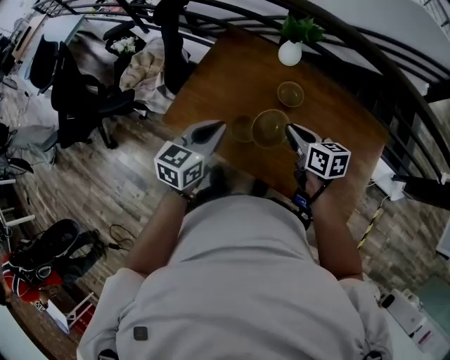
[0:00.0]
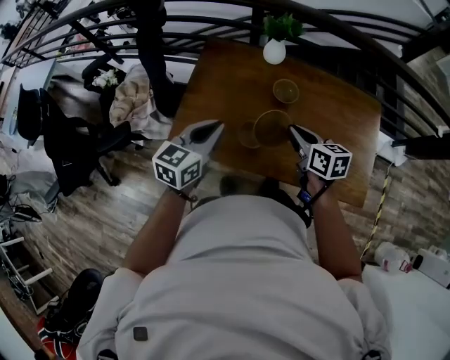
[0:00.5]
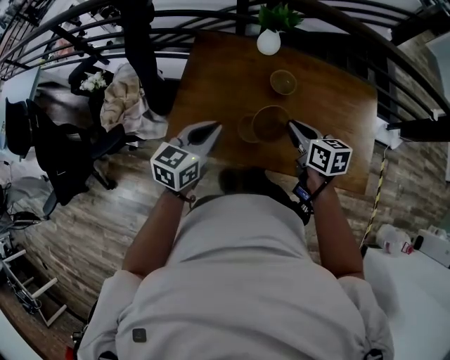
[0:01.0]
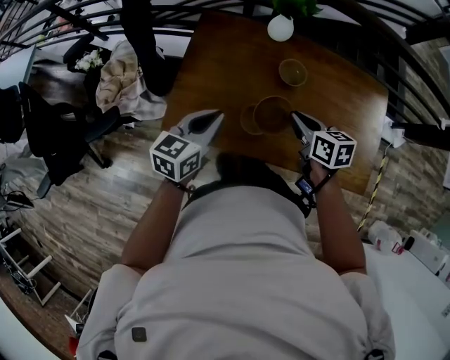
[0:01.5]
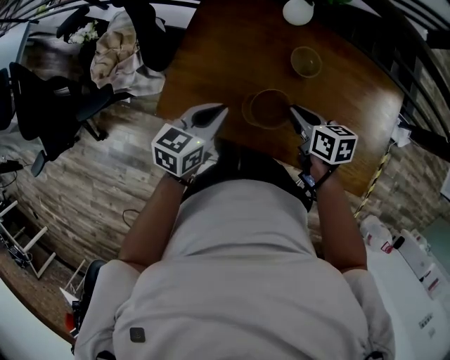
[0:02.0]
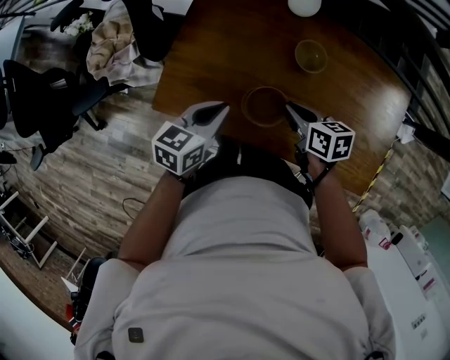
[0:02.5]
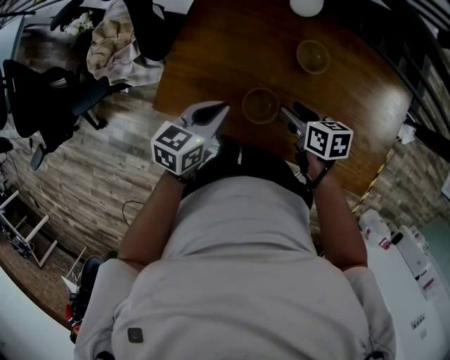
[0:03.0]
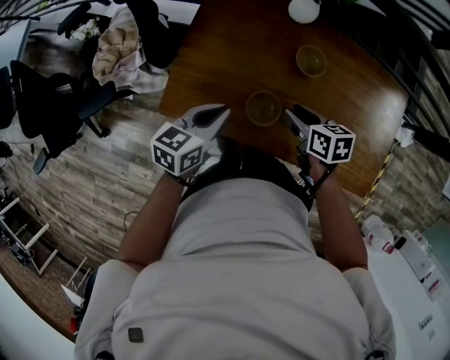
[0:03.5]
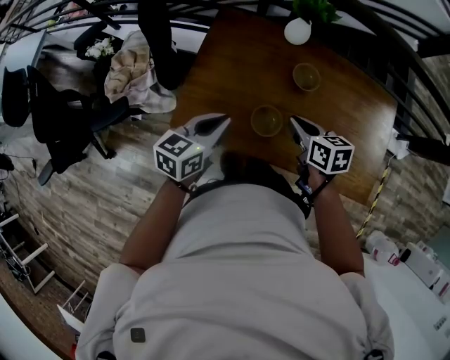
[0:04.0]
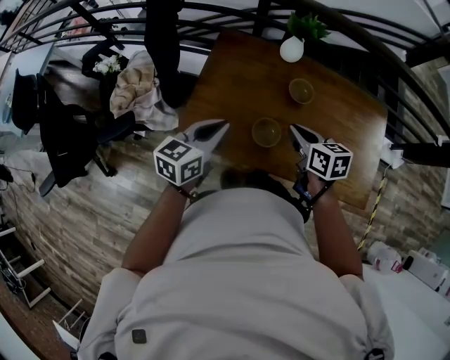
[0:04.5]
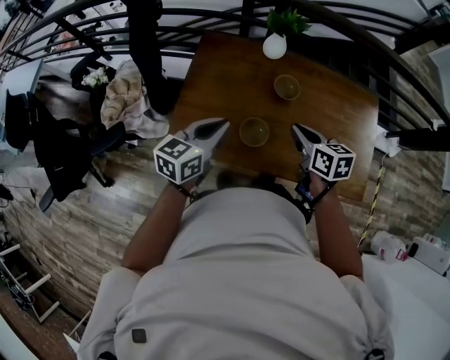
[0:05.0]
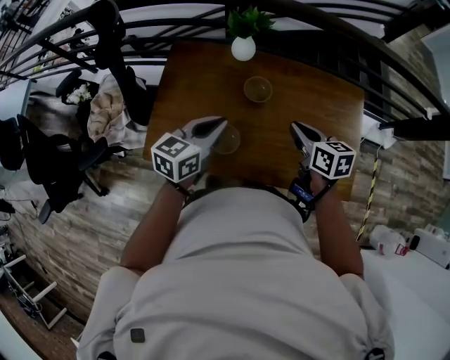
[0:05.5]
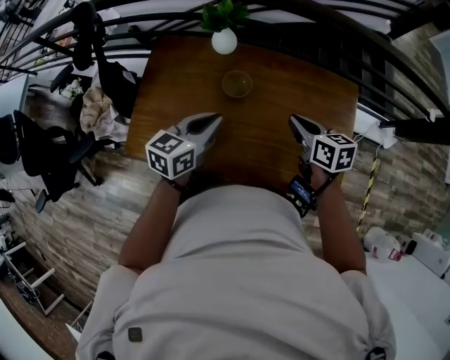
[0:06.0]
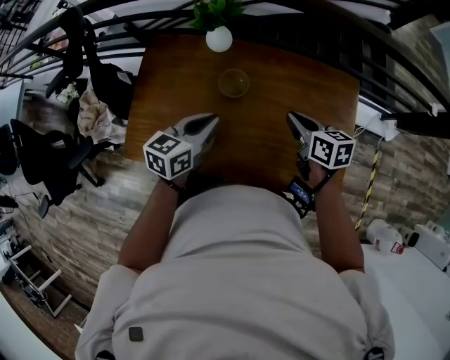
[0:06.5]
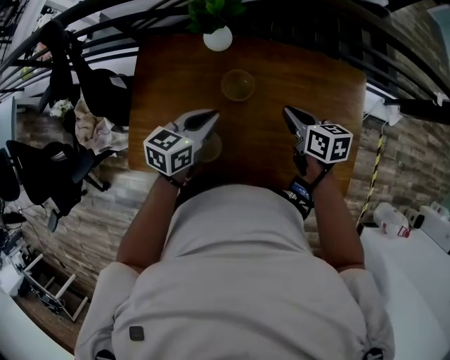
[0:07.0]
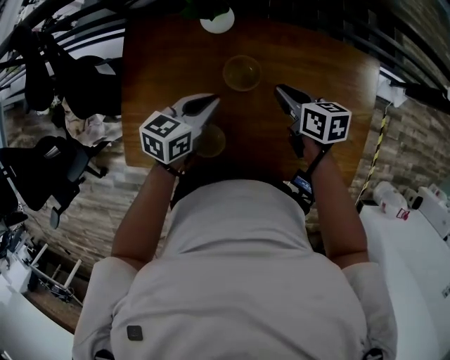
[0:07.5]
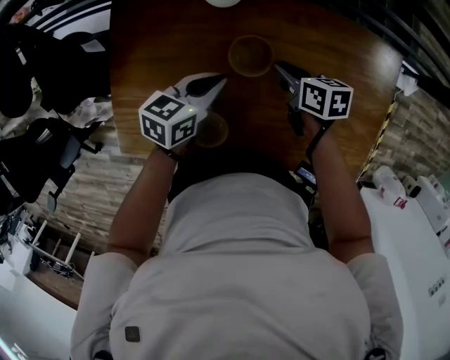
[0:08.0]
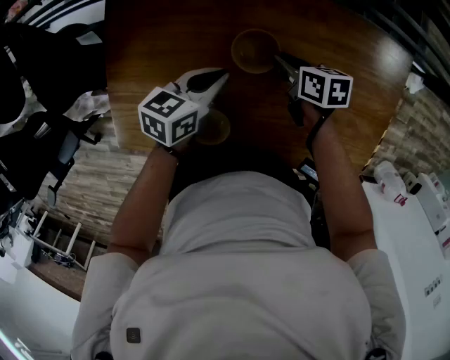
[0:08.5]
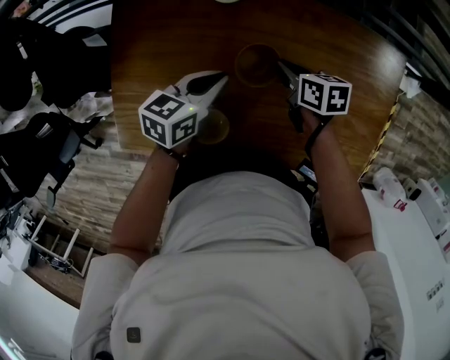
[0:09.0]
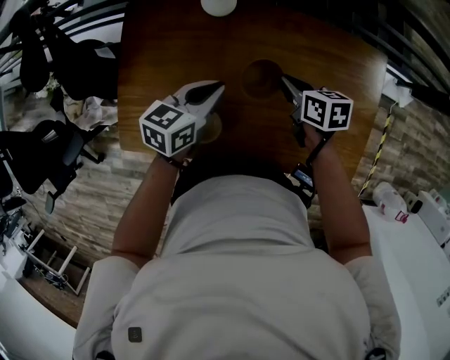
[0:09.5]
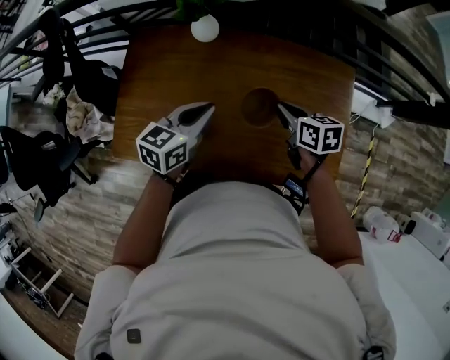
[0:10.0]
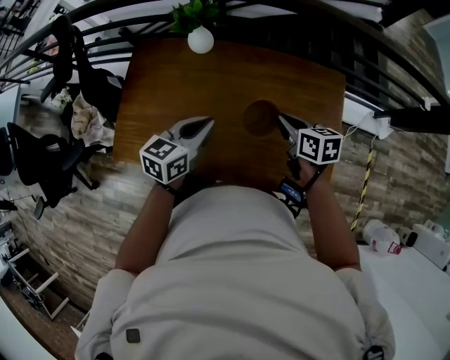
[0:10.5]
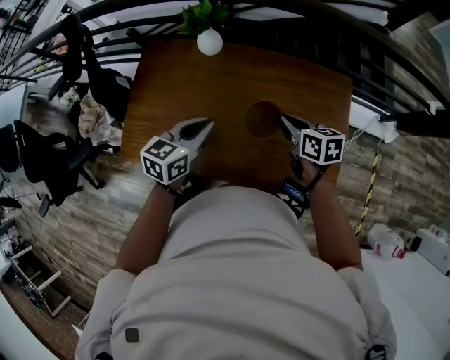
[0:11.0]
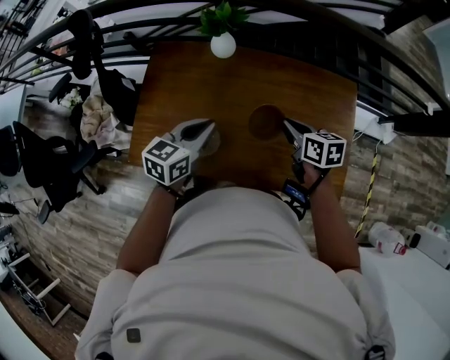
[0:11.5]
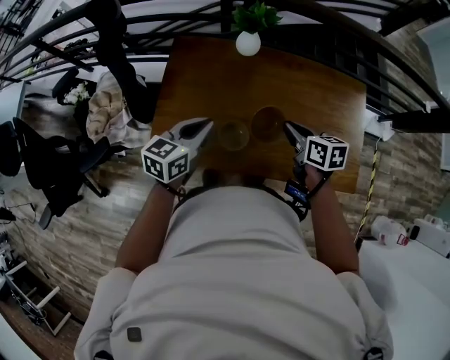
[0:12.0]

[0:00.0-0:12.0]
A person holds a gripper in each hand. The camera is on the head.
0:00.0 to 0:02.0: The right gripper is displaced downward and to the left by roughly 10 cm. Meanwhile the left gripper is displaced downward, forward and to the left by roughly 15 cm.
0:02.0 to 0:04.0: Both grippers move upward, about 5 cm. The right gripper opens and closes again.
0:04.0 to 0:06.0: Both grippers travel together to the right, about 30 cm.
0:06.0 to 0:08.0: The left gripper shifts approximately 25 cm downward and forward, and rotates approximately 20 degrees. Meanwhile the right gripper heads downward, forward and to the left, covering some 30 cm, and turns by approximately 20 degrees.
0:08.0 to 0:10.0: The left gripper moves upward and backward, some 20 cm, while the right gripper is displaced upward, backward and to the right by some 25 cm.
0:10.0 to 0:12.0: The two grippers go approximately 20 cm to the left and backward.

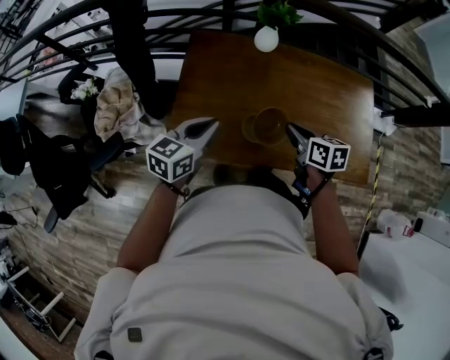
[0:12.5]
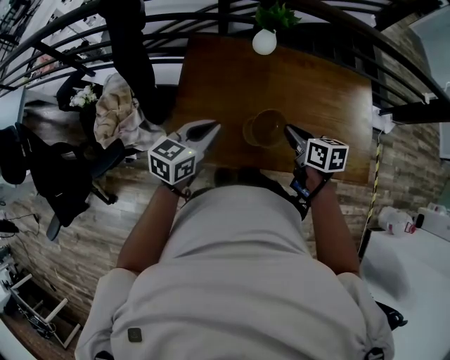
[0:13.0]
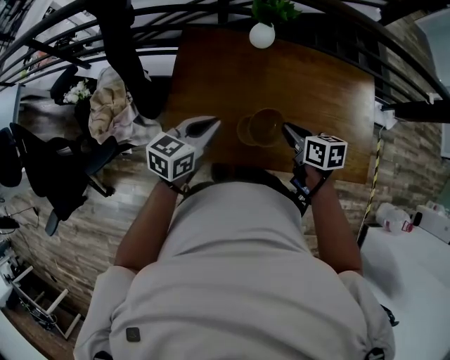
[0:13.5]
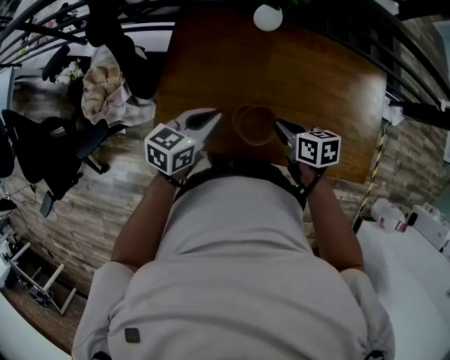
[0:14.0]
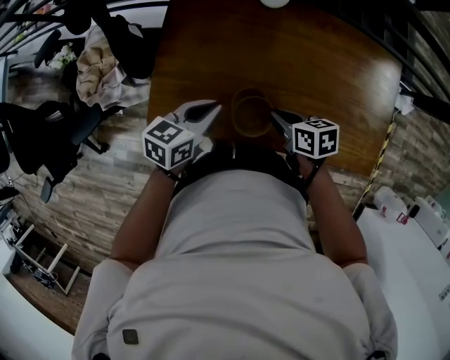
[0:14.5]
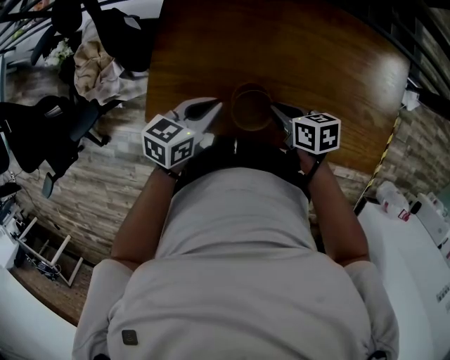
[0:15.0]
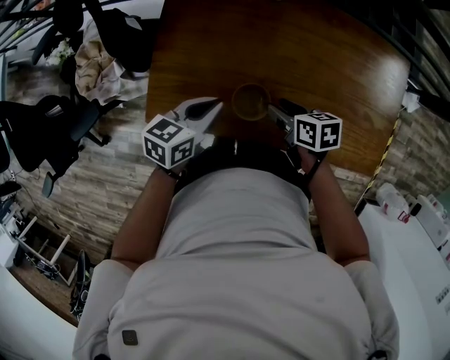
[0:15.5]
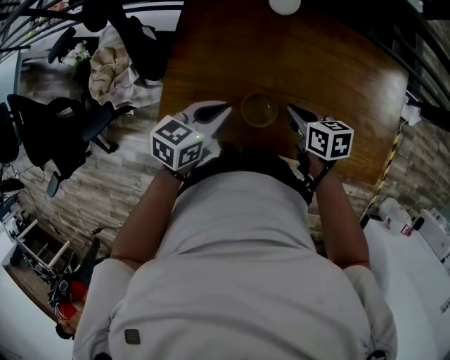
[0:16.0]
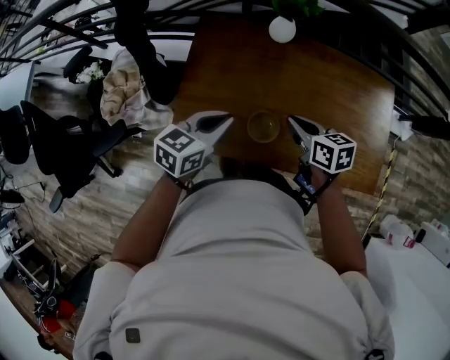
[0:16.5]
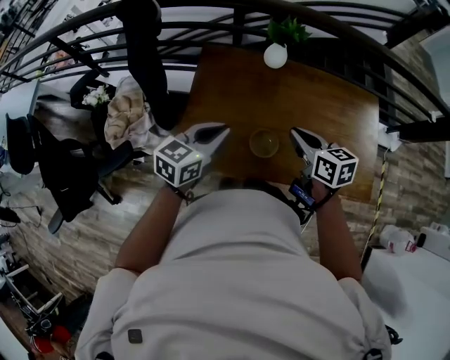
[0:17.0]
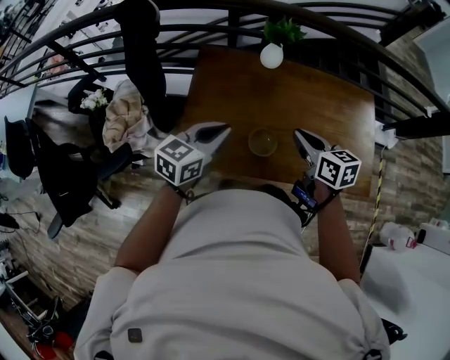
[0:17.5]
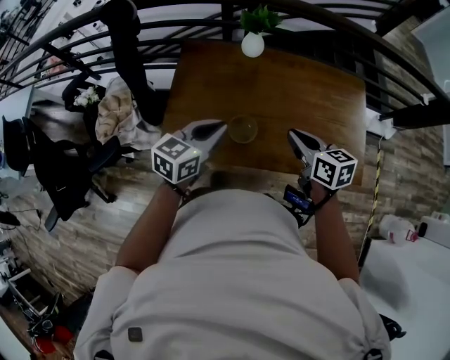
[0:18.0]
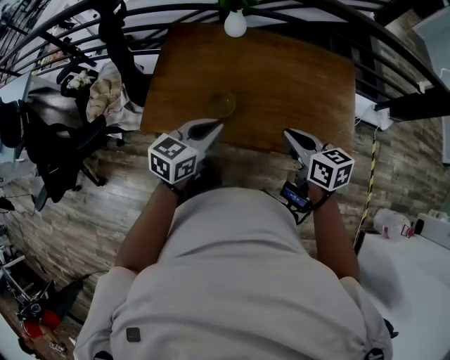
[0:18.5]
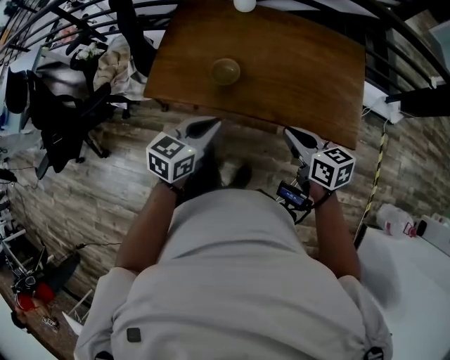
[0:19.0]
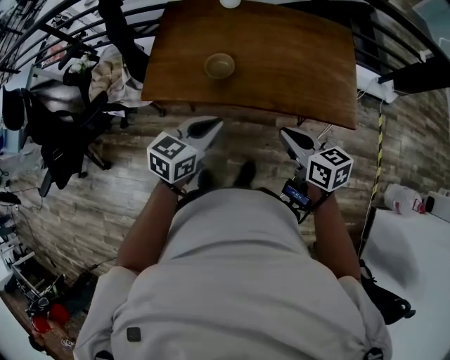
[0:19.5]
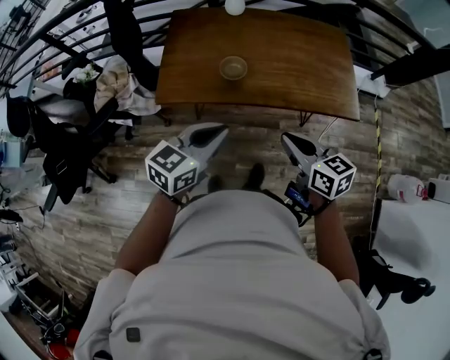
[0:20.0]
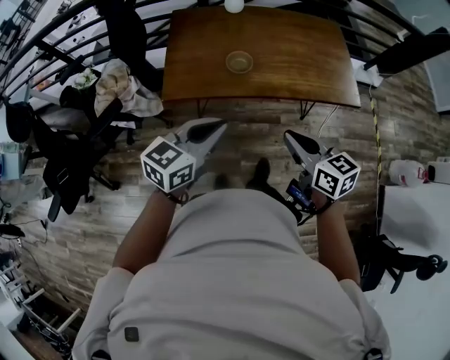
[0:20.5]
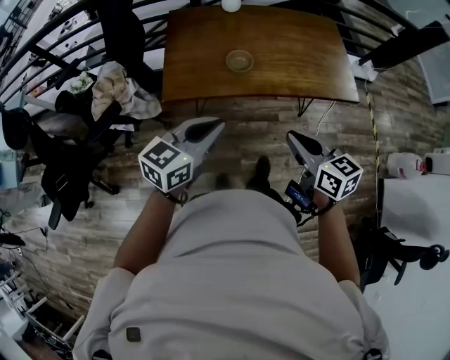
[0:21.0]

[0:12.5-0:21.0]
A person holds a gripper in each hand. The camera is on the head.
0:12.5 to 0:14.5: The right gripper moves downward, approximately 15 cm, and turns by approximately 20 degrees; the left gripper heads downward, to the right and forward, covering about 15 cm.
0:14.5 to 0:16.5: The grippers both shift upward by approximately 10 cm. The right gripper opens and closes again.
0:16.5 to 0:19.0: Both grippers travel together backward and to the right, roughly 35 cm.
0:19.0 to 0:21.0: The right gripper travels backward and to the left by roughly 30 cm, while the left gripper goes some 25 cm to the left, backward and upward, and rotates approximately 20 degrees.

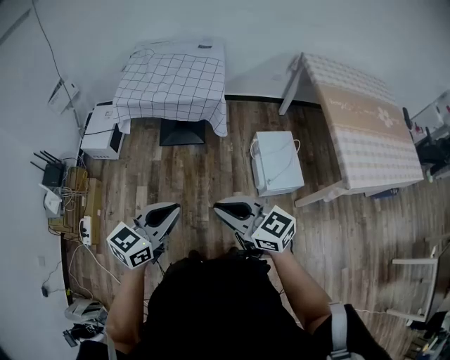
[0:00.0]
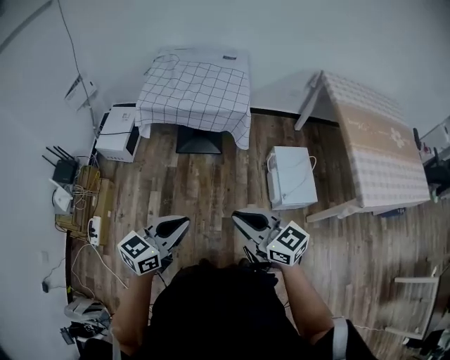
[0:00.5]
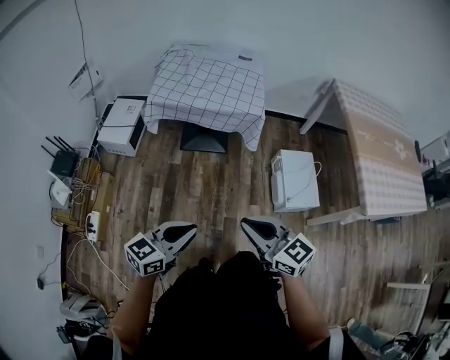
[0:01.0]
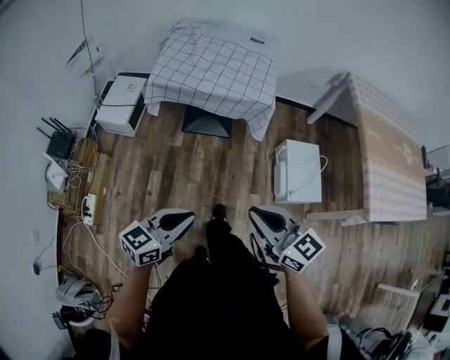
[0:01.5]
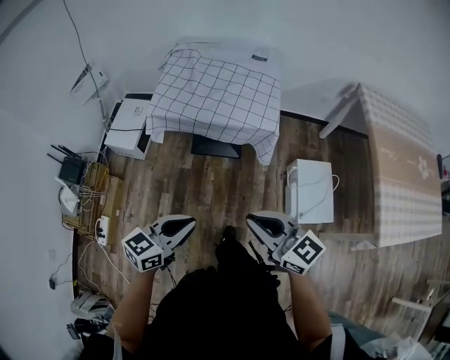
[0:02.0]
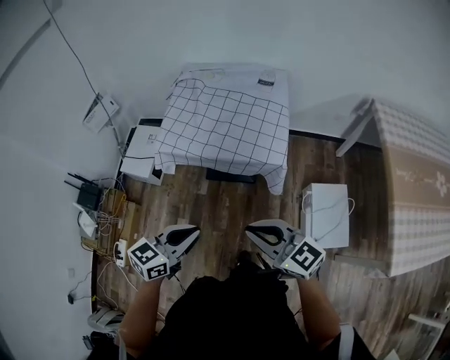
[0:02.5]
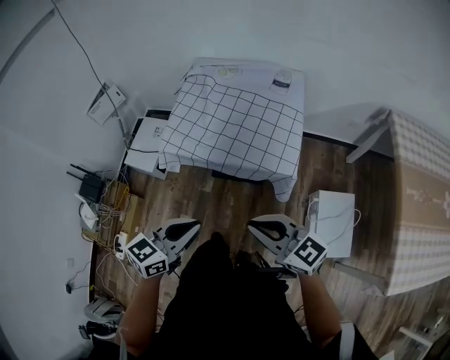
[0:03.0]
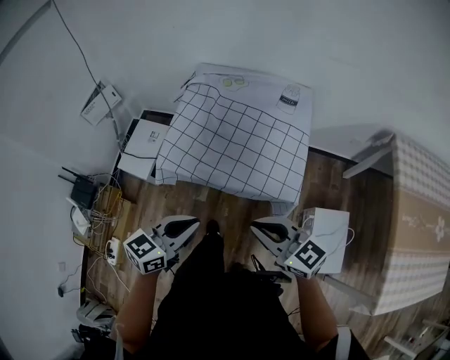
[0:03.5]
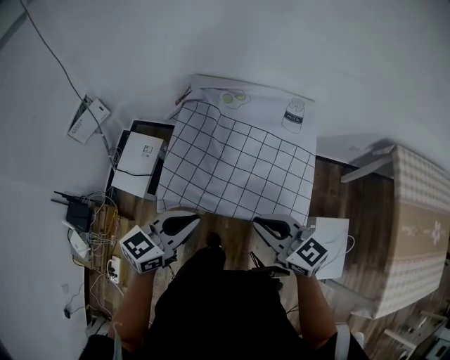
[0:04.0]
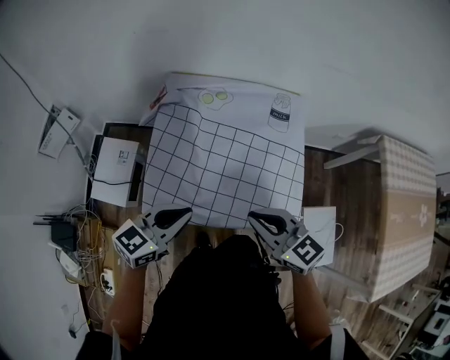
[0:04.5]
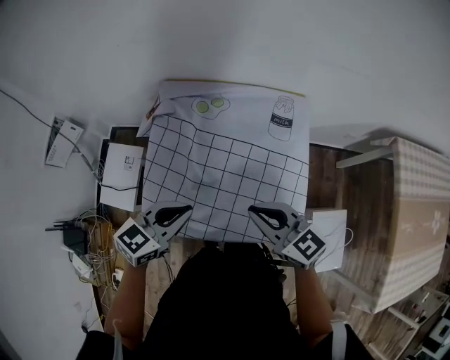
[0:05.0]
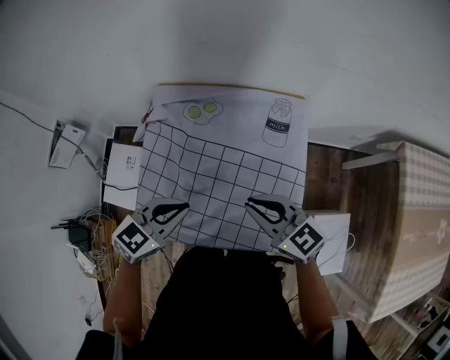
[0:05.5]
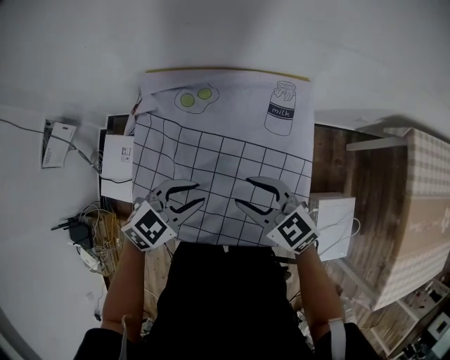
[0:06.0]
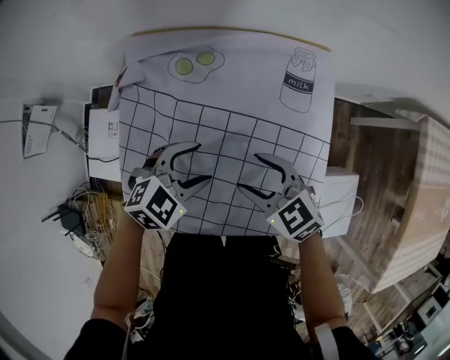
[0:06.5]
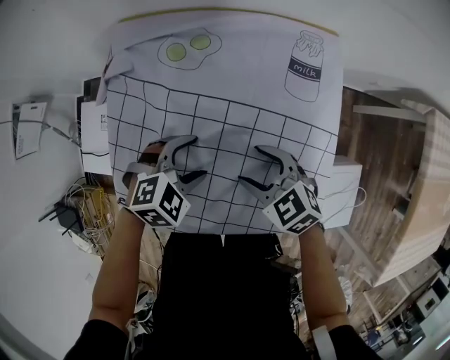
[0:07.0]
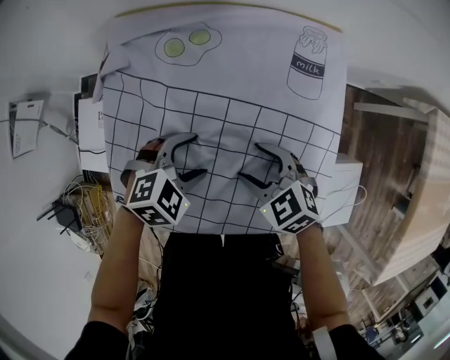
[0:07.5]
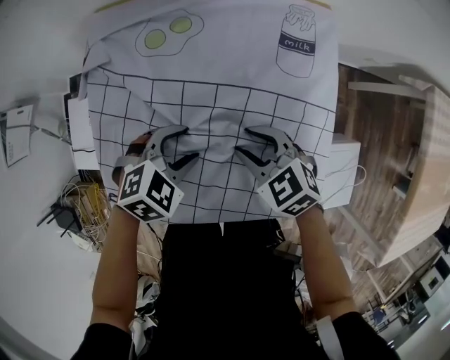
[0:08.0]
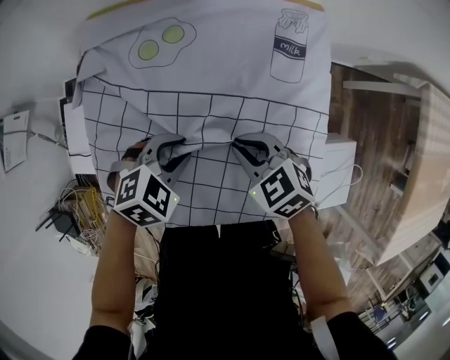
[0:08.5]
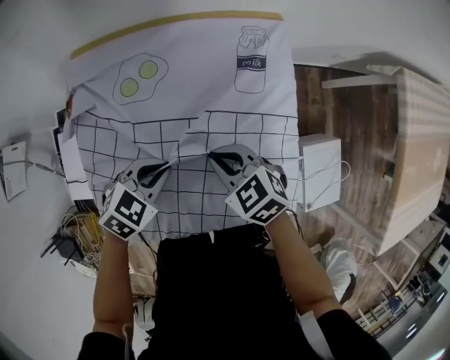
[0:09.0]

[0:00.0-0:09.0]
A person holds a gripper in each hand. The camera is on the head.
0:00.0 to 0:02.0: The right gripper shifts some 20 cm forward. Meanwhile the left gripper travels forward and to the left by some 20 cm.
0:02.0 to 0:04.5: The two grippers travel together, forward, approximately 50 cm.
0:04.5 to 0:07.0: Both grippers move downward, some 20 cm. The right gripper swivels some 30 degrees, and opens up. The left gripper points its fingers about 40 degrees further downward, and opens.
0:07.0 to 0:09.0: The left gripper closes up. The right gripper closes up.
